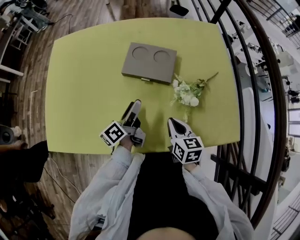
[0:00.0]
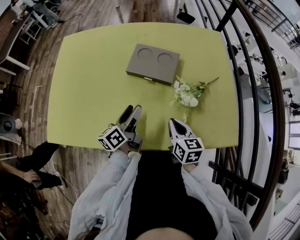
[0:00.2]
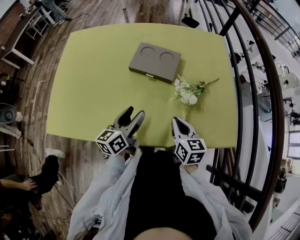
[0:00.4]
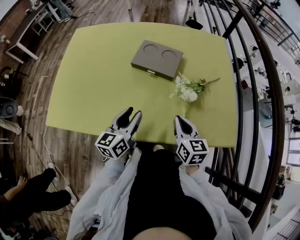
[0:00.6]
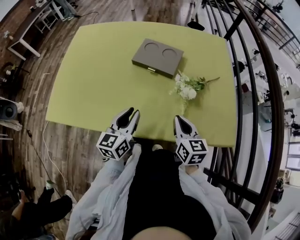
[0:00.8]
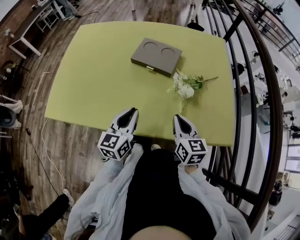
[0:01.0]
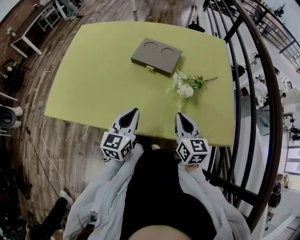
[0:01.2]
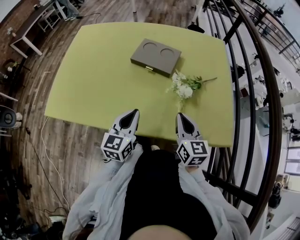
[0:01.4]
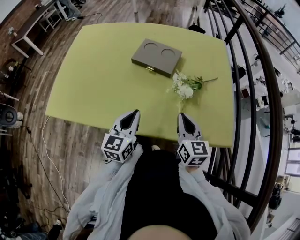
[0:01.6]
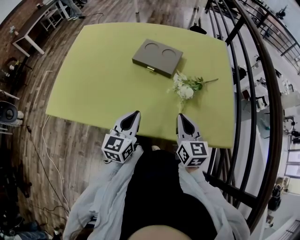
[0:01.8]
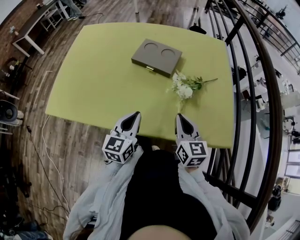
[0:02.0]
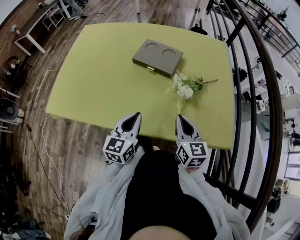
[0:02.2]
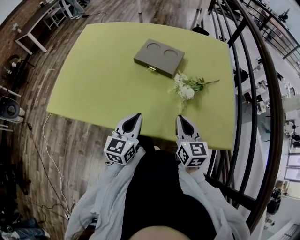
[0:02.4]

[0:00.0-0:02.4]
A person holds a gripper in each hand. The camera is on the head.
0:00.0 to 0:01.2: The left gripper is displaced backward and upward by roughly 20 cm, rolls clockwise, seen from behind, by some 60 degrees, and closes up. Meanwhile the right gripper goes roughly 10 cm upward and backward.
0:01.2 to 0:02.4: The grippers make only small movements.

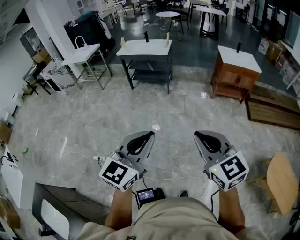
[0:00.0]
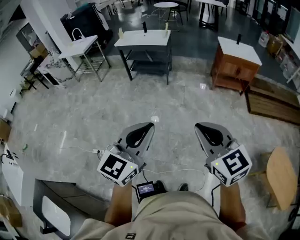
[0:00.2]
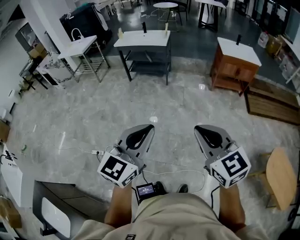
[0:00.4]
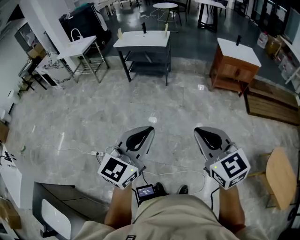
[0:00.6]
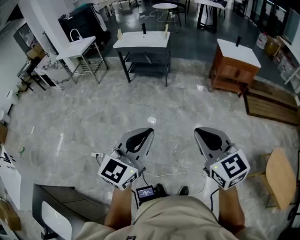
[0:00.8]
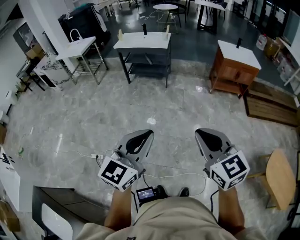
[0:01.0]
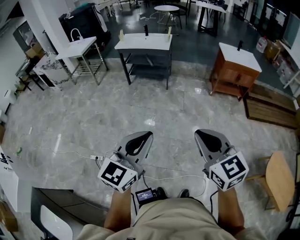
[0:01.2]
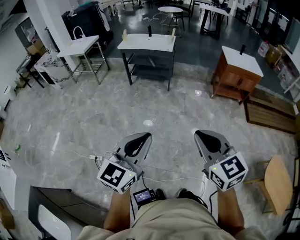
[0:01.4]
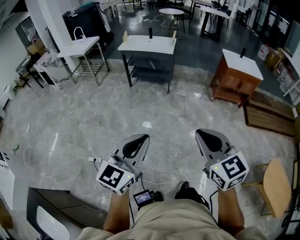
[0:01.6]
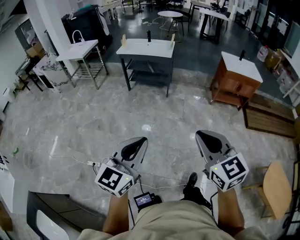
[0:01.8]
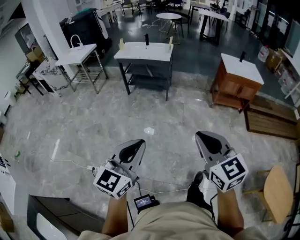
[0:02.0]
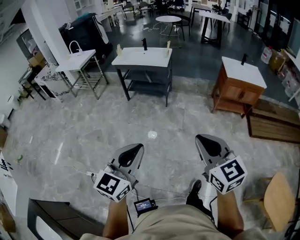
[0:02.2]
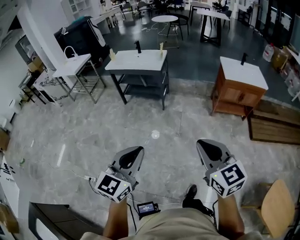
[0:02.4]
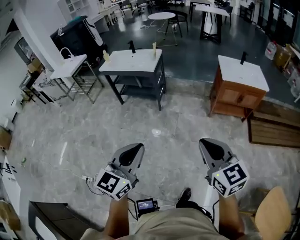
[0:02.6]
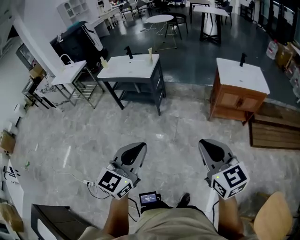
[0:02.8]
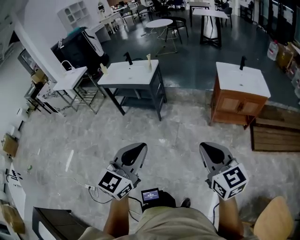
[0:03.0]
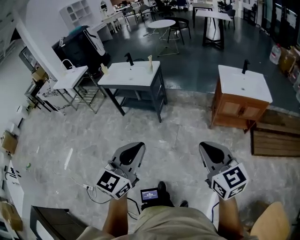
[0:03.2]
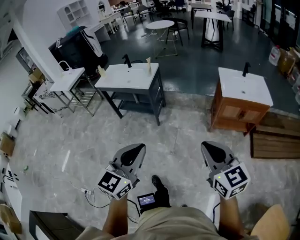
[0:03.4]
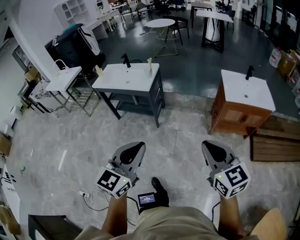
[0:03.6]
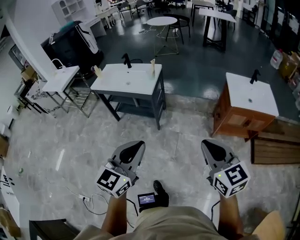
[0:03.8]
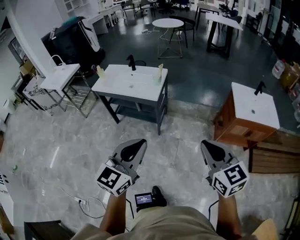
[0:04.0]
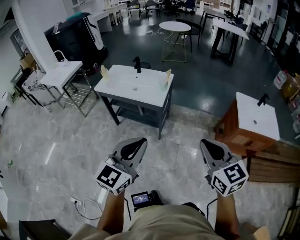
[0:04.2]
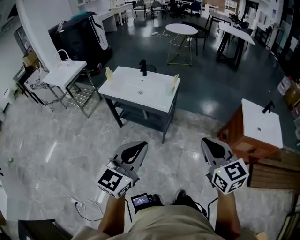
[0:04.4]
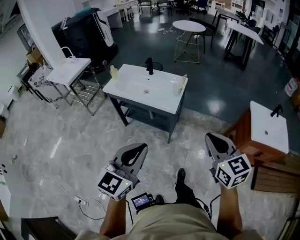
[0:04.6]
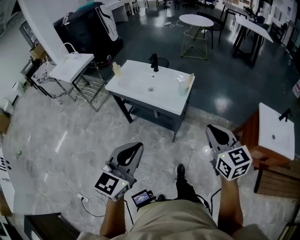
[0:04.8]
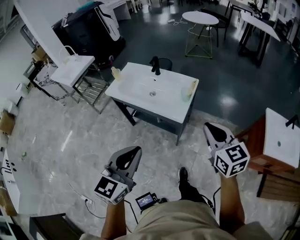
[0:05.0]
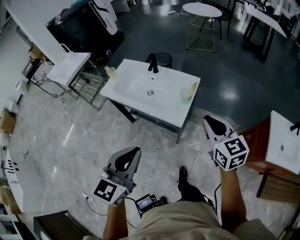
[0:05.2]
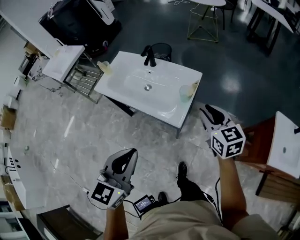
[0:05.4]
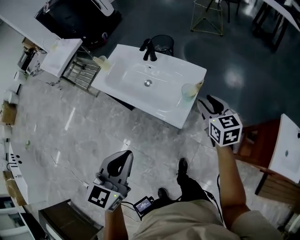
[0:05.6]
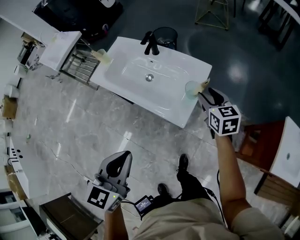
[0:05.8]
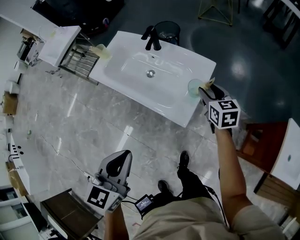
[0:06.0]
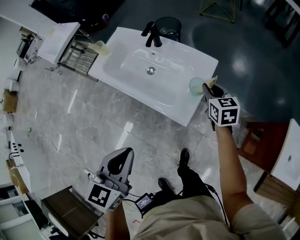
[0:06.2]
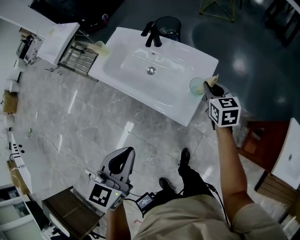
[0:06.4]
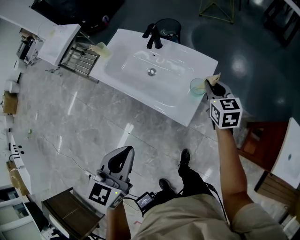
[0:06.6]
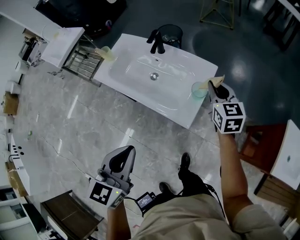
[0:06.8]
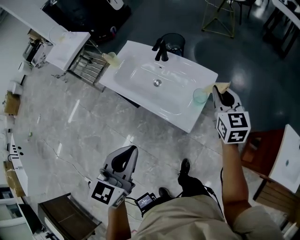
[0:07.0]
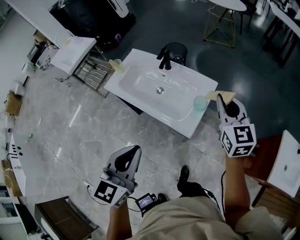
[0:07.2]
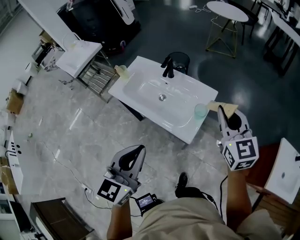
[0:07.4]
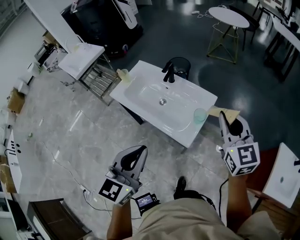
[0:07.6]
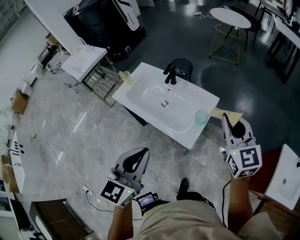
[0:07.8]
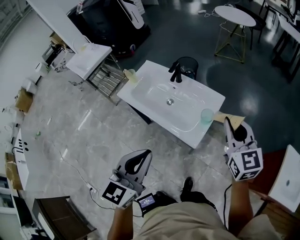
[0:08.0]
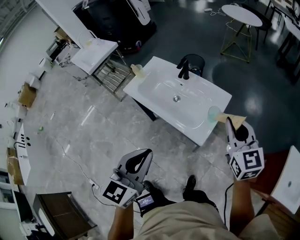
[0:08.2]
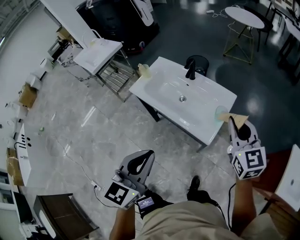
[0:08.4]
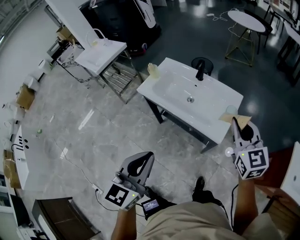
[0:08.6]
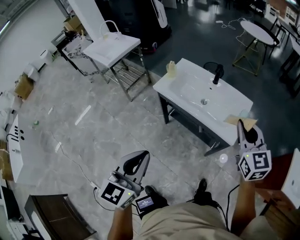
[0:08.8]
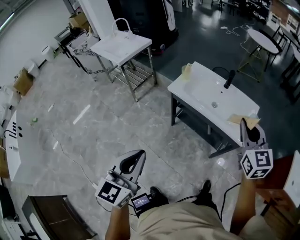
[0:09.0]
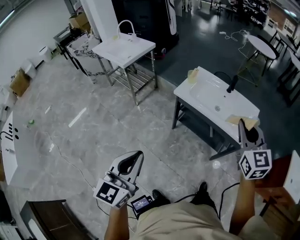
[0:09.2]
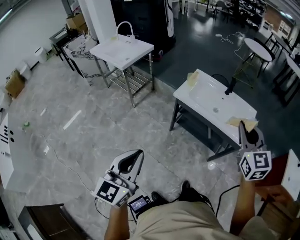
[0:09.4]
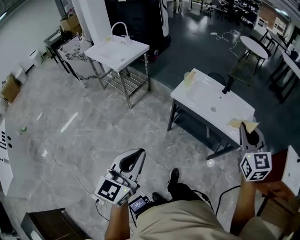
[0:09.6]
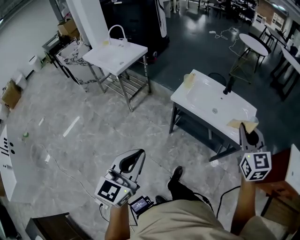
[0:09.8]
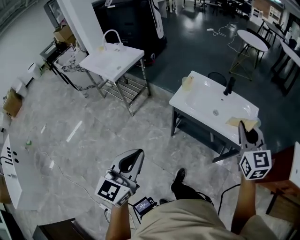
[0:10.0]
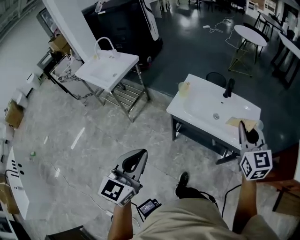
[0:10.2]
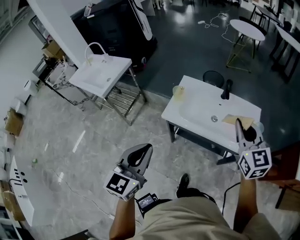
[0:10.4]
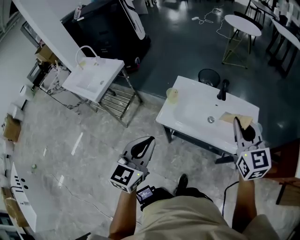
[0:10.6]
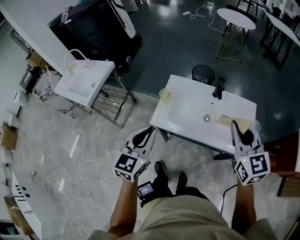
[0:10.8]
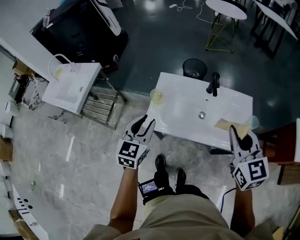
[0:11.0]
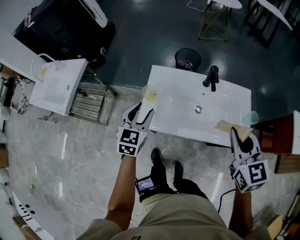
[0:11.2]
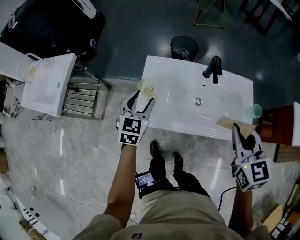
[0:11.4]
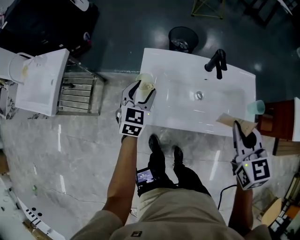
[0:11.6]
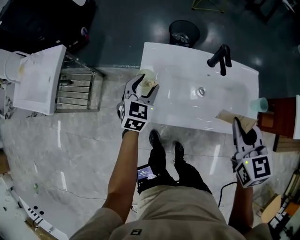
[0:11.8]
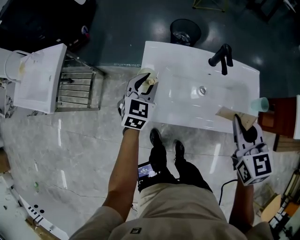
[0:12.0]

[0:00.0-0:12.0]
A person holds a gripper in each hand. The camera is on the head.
0:00.0 to 0:01.6: Both grippers move to the left and forward, approximately 15 cm.
0:01.6 to 0:03.0: Both grippers are carried to the right and forward, roughly 60 cm.
0:03.0 to 0:04.4: The pair of grippers is taken forward and to the left, approximately 50 cm.
0:04.4 to 0:06.0: The right gripper heads forward and downward, covering approximately 70 cm, rotates about 20 degrees, and opens up. Meanwhile the left gripper moves forward and downward, about 40 cm, and swivels roughly 30 degrees.
0:06.0 to 0:07.6: The left gripper travels upward by some 10 cm; the right gripper heads upward, covering some 25 cm, changes its angle by some 30 degrees, and closes up.
0:07.6 to 0:09.0: The two grippers go roughly 40 cm to the left.
0:09.0 to 0:10.4: The right gripper heads forward, covering roughly 15 cm, while the left gripper heads forward, covering roughly 25 cm.
0:10.4 to 0:12.0: The left gripper moves forward and downward, approximately 50 cm, rotates about 30 degrees, and opens, while the right gripper travels downward and forward by roughly 20 cm, and turns by roughly 30 degrees.

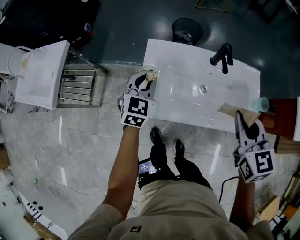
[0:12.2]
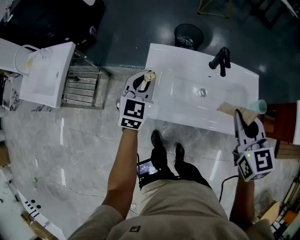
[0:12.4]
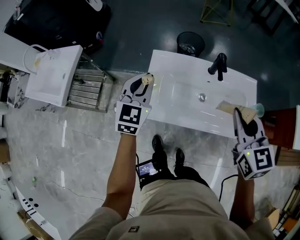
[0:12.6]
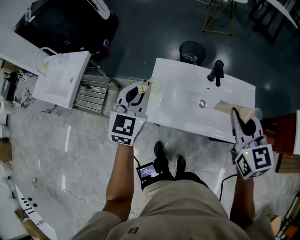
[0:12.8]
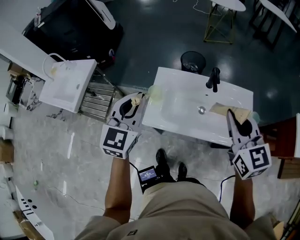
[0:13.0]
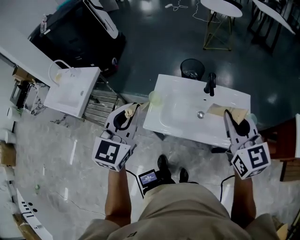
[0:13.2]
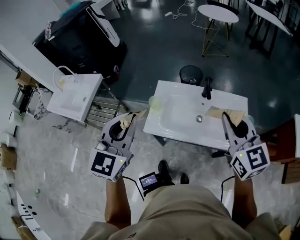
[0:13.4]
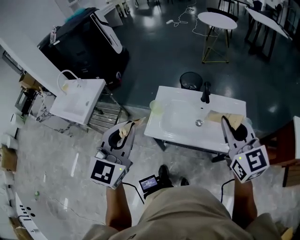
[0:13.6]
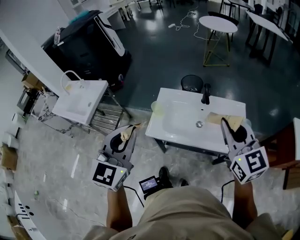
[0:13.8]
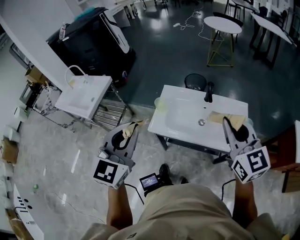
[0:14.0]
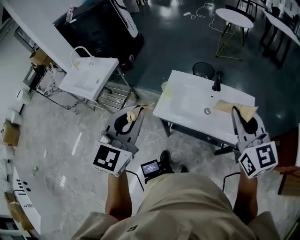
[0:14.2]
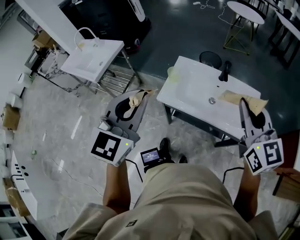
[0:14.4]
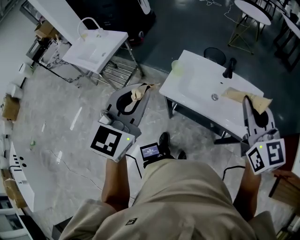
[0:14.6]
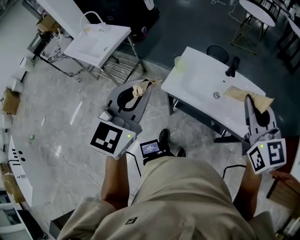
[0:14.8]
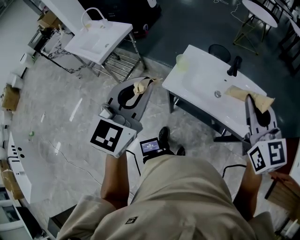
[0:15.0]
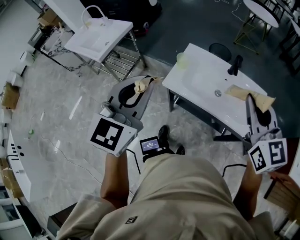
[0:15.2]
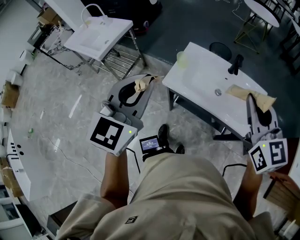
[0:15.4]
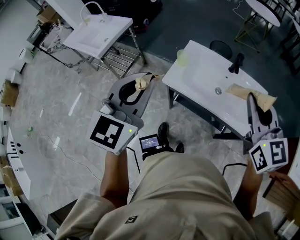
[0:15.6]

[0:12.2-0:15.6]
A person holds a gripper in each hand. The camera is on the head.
0:12.2 to 0:13.8: The right gripper goes about 25 cm upward and backward, and changes its angle by roughly 30 degrees; the left gripper goes approximately 40 cm upward and backward.
0:13.8 to 0:15.6: The left gripper shifts by approximately 5 cm; the right gripper changes place by some 5 cm.

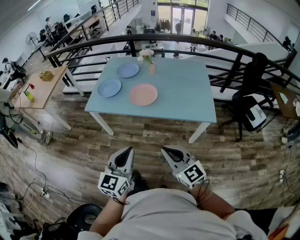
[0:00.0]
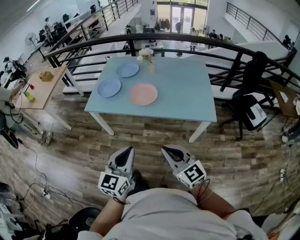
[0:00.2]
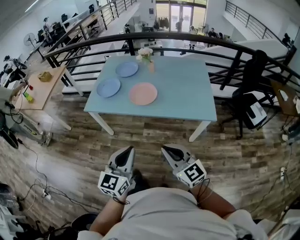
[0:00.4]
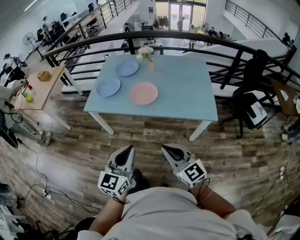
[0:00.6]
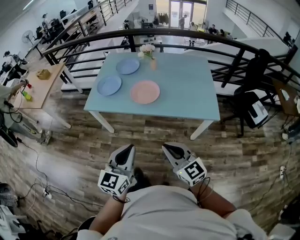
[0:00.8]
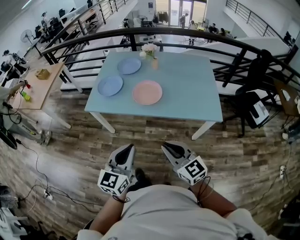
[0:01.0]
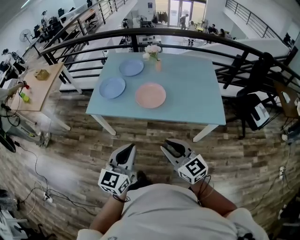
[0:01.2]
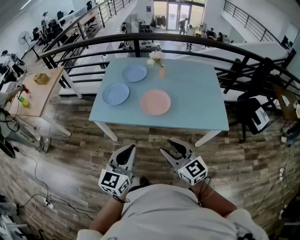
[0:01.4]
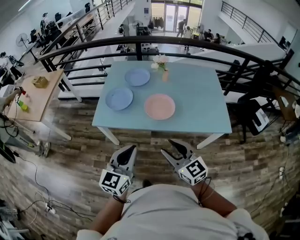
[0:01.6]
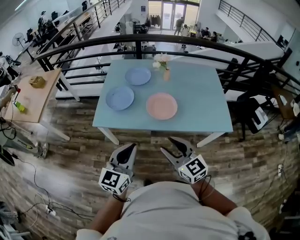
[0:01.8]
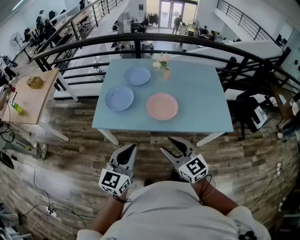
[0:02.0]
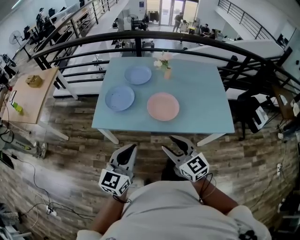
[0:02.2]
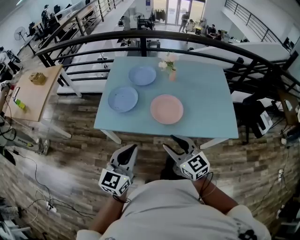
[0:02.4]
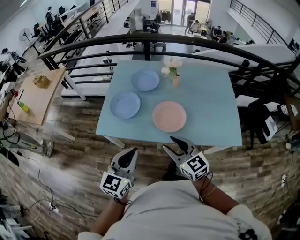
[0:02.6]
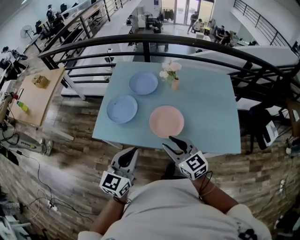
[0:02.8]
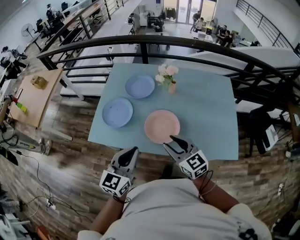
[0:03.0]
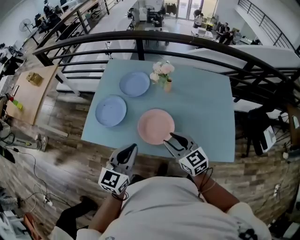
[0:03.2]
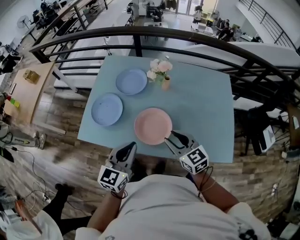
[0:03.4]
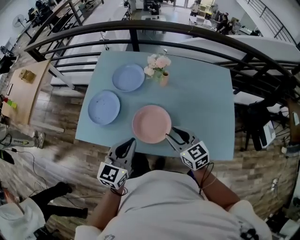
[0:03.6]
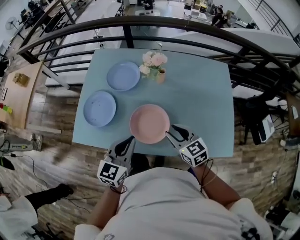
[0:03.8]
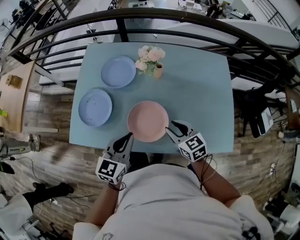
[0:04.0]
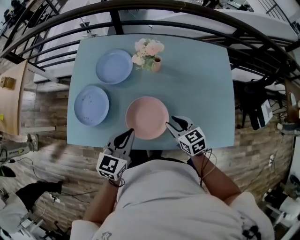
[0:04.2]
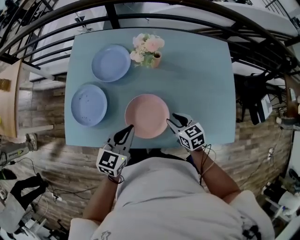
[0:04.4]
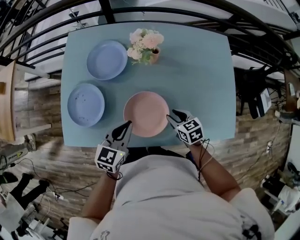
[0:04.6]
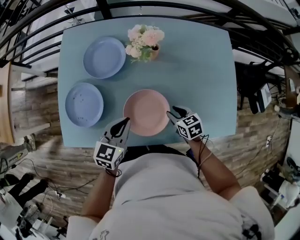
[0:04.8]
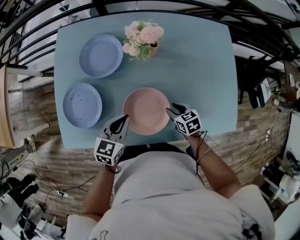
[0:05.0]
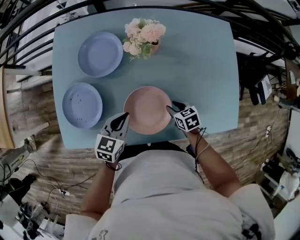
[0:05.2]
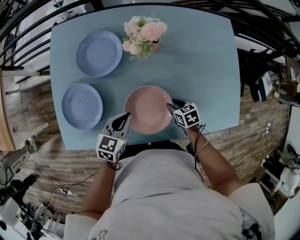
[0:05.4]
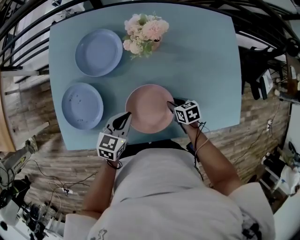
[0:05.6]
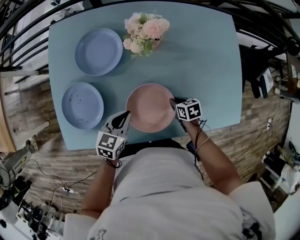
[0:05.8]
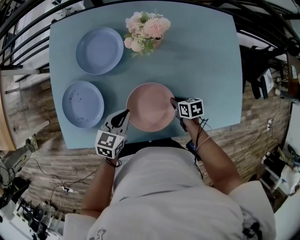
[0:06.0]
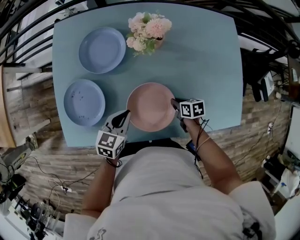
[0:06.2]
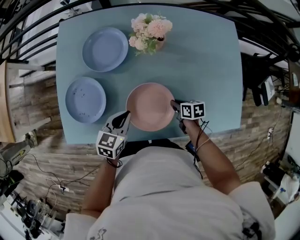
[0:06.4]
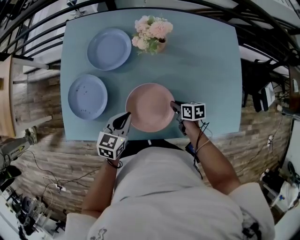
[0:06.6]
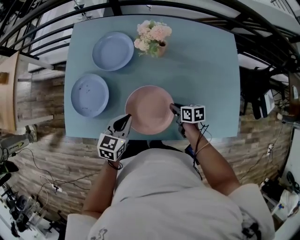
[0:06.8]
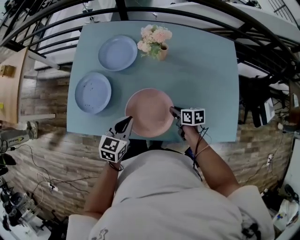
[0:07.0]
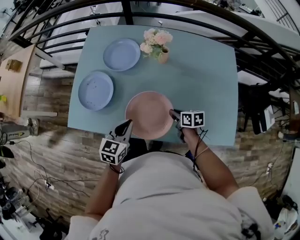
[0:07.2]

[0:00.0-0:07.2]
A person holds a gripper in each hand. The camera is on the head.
0:00.0 to 0:01.4: Both grippers travel together forward and to the left, roughly 15 cm. The right gripper opens.
0:01.4 to 0:02.8: Both grippers travel together forward, some 20 cm.
0:02.8 to 0:04.4: The left gripper shifts approximately 30 cm forward, downward and to the right, while the right gripper goes some 30 cm downward, forward and to the right, and changes its angle by approximately 30 degrees.
0:04.4 to 0:05.8: The left gripper heads downward and forward, covering some 15 cm. Meanwhile the right gripper heads downward, covering roughly 15 cm, swivels approximately 30 degrees, and closes its fingers.
0:05.8 to 0:07.2: The left gripper heads backward and upward, covering about 15 cm, and turns by some 20 degrees, while the right gripper travels upward by approximately 10 cm.
